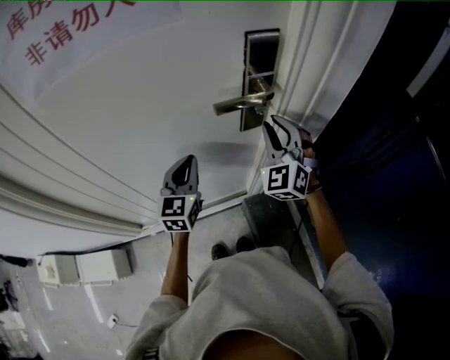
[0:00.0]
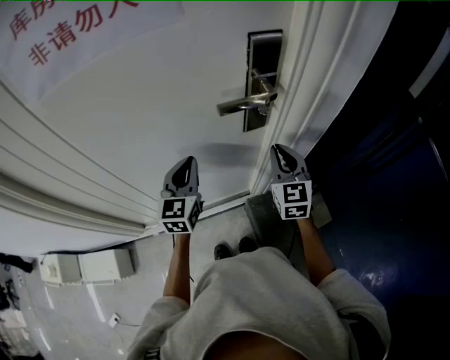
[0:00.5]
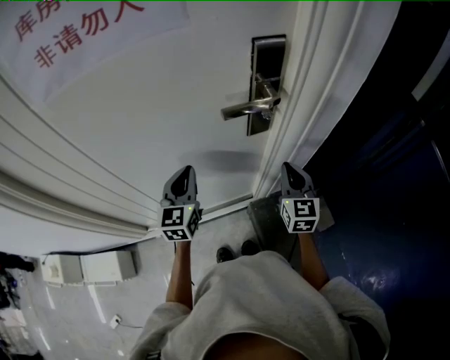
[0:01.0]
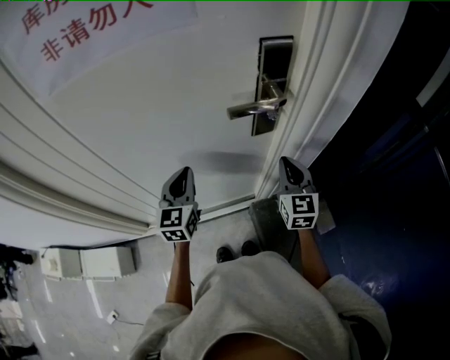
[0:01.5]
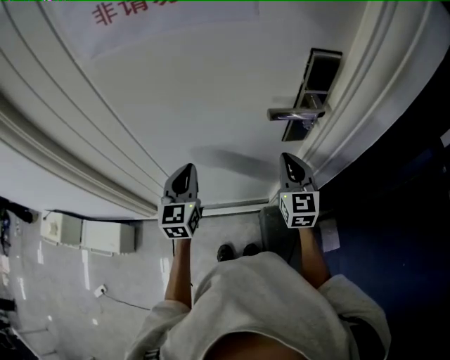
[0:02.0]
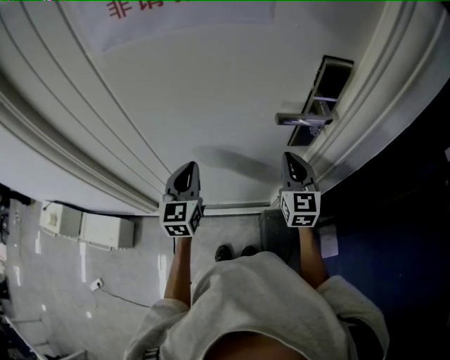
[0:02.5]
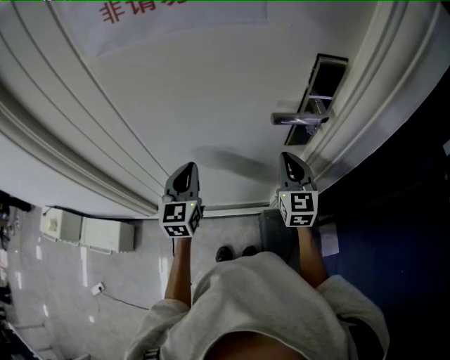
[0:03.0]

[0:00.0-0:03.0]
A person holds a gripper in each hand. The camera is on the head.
0:00.0 to 0:01.5: The right gripper heads downward, covering some 10 cm, and rotates around the line of its fingers by roughly 40 degrees, clockwise from behind. The left gripper moves about 5 cm.
0:01.5 to 0:03.0: Both grippers move to the left, some 10 cm.

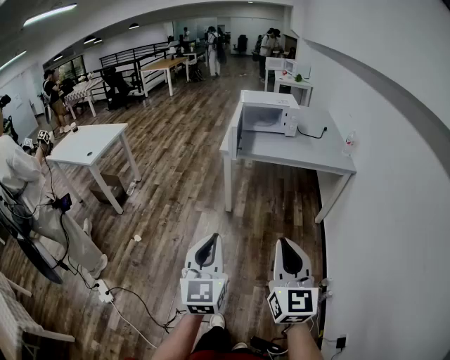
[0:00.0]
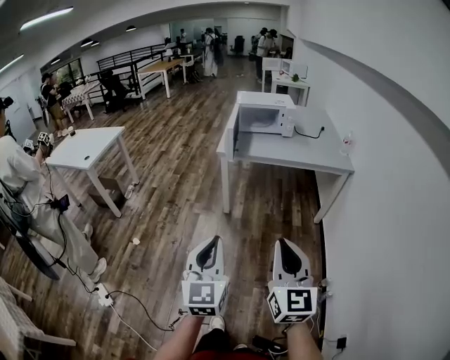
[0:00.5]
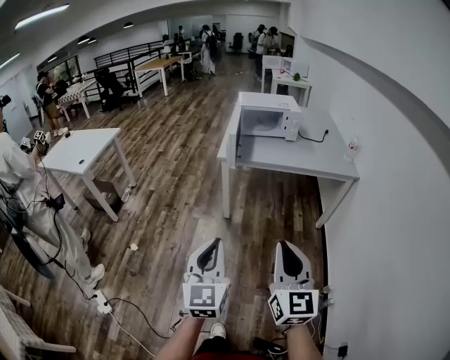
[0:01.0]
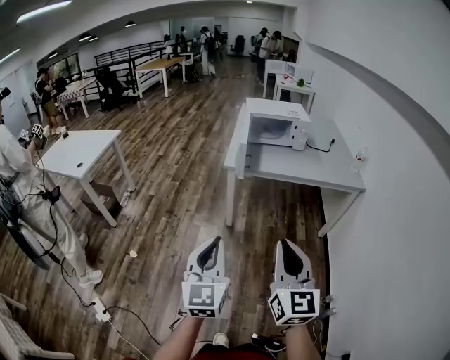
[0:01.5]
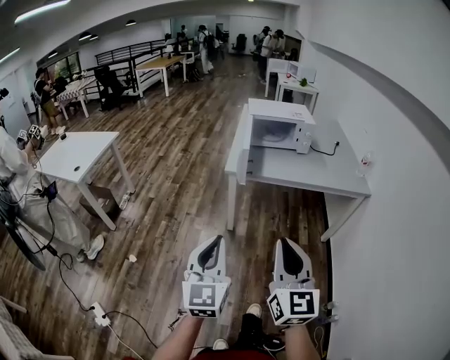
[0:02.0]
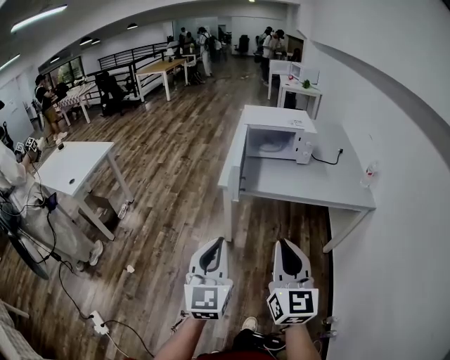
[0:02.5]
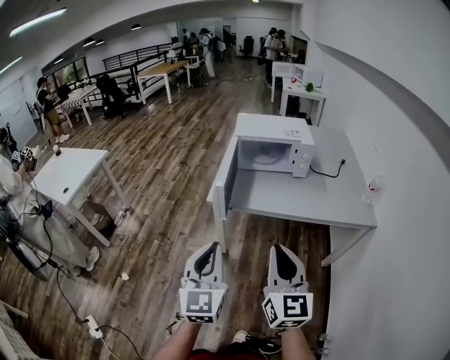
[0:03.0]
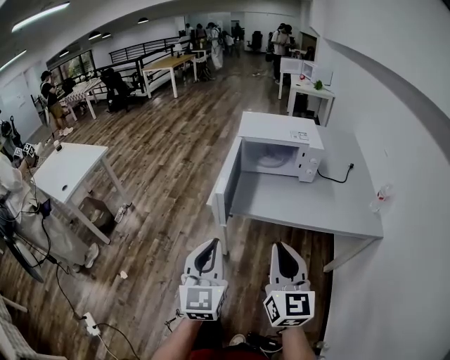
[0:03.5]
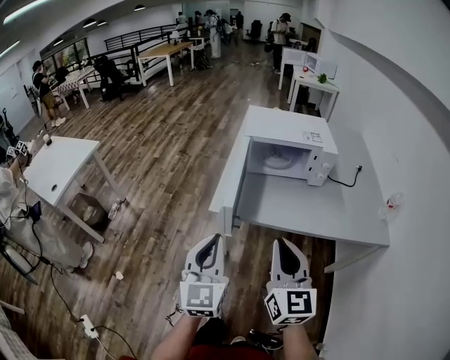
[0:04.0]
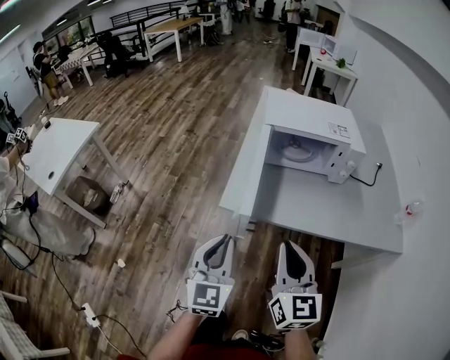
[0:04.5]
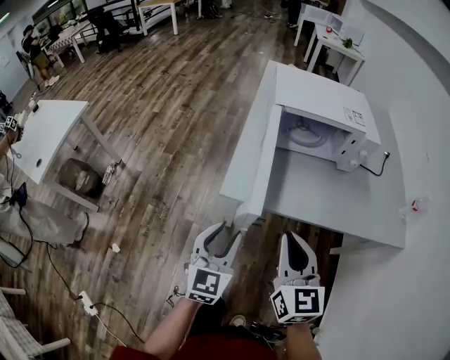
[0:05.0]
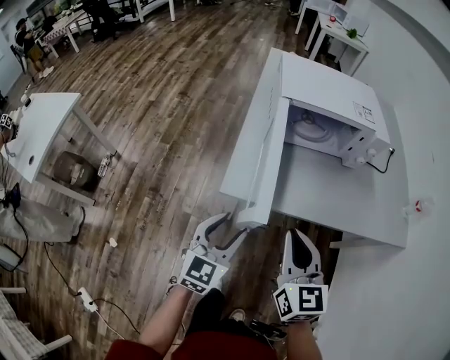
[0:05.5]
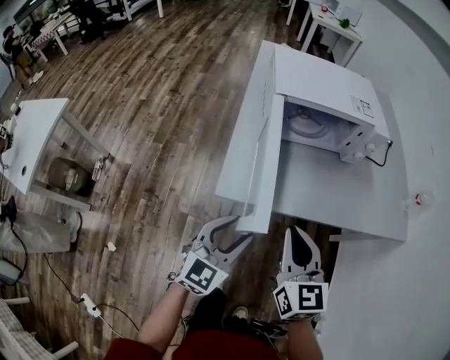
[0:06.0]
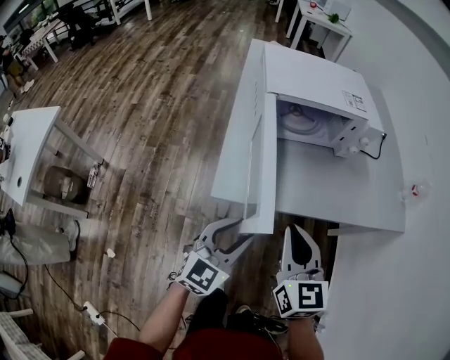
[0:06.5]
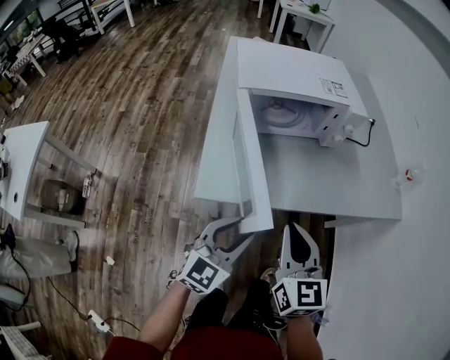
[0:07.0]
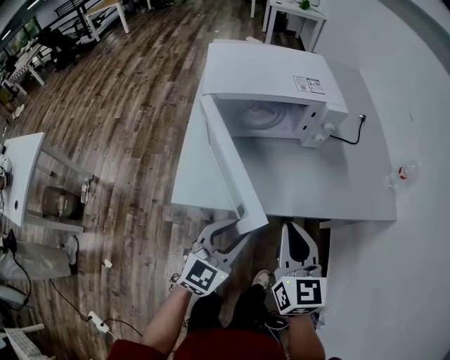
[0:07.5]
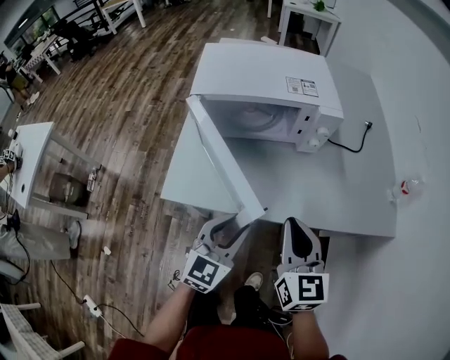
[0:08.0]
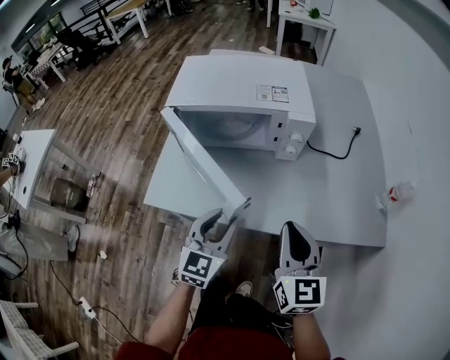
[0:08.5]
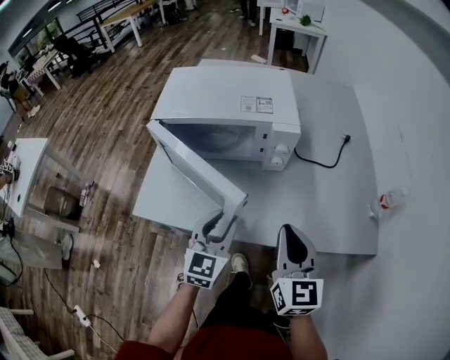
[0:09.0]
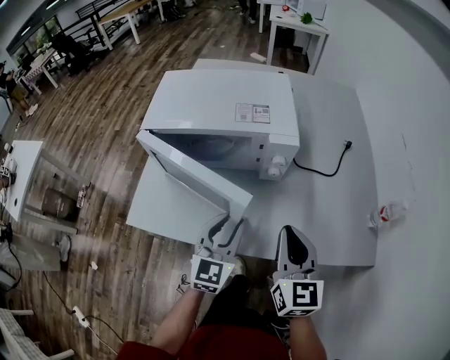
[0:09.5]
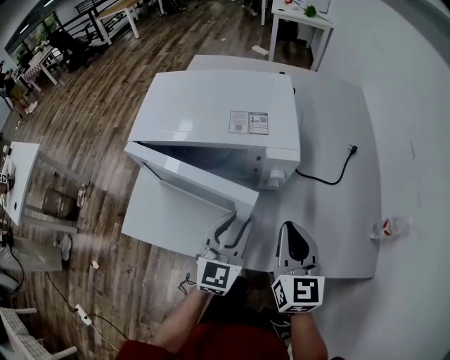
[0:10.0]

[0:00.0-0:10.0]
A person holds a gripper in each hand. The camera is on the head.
0:00.0 to 0:02.0: The grippers both shift forward by roughly 20 cm.
0:02.0 to 0:04.0: Both grippers travel together forward, about 35 cm.
0:04.0 to 0:06.0: The right gripper shifts roughly 20 cm forward, downward and to the left; the left gripper shifts about 20 cm downward and forward, rotates roughly 40 degrees, and opens up.
0:06.0 to 0:08.0: Both grippers move to the right and forward, roughly 20 cm.
0:08.0 to 0:10.0: The grippers both shift forward and to the right by about 20 cm.

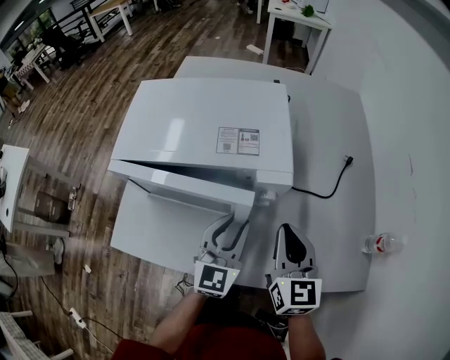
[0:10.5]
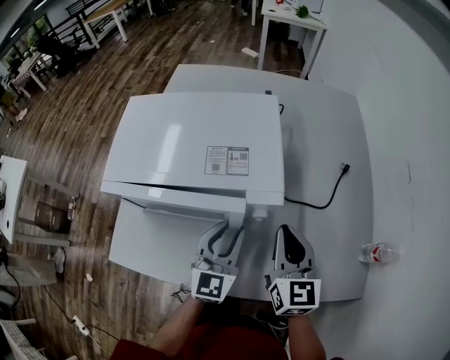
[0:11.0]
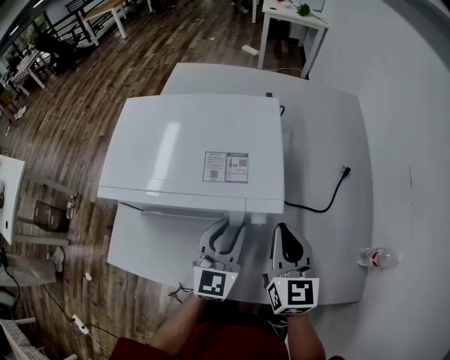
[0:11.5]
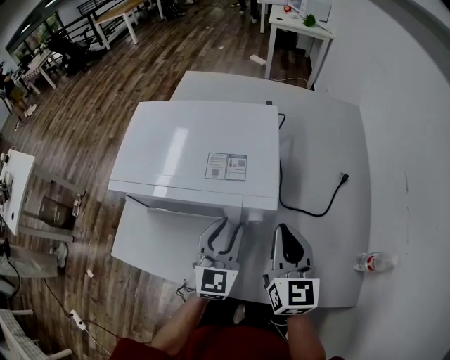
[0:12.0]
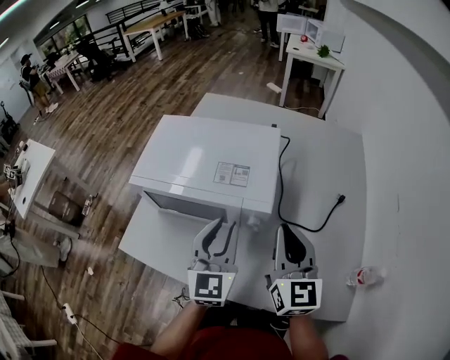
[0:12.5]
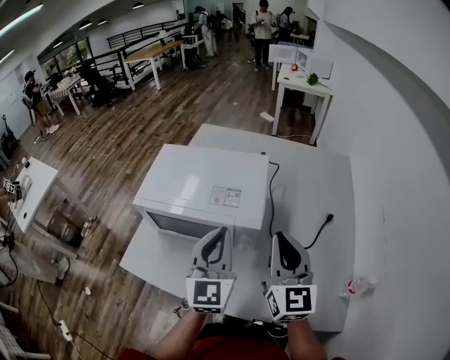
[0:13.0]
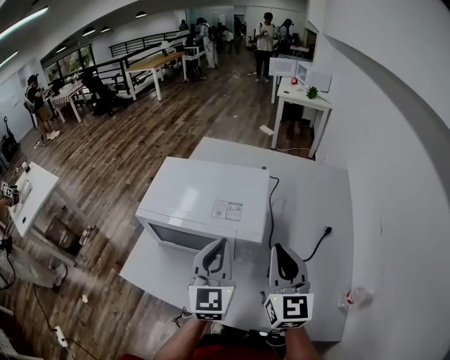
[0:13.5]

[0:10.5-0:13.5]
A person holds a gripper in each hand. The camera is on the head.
0:10.5 to 0:12.0: The right gripper travels forward by some 5 cm.
0:12.0 to 0:13.5: The two grippers go approximately 15 cm upward. The left gripper closes up.

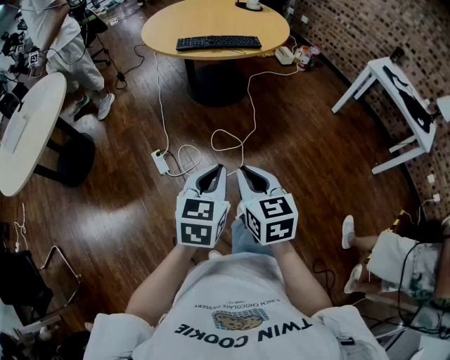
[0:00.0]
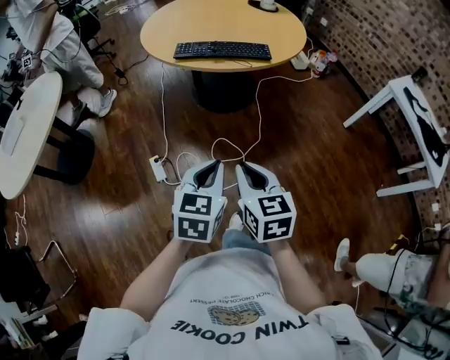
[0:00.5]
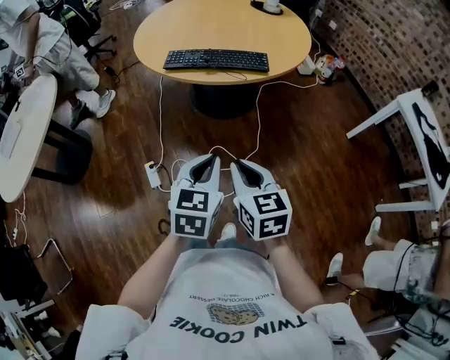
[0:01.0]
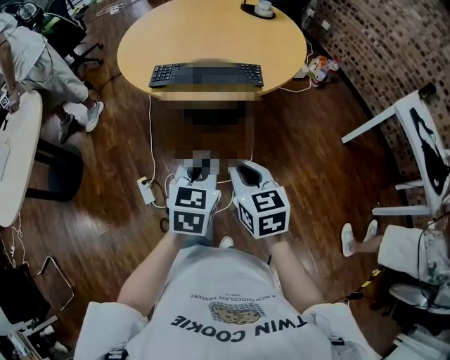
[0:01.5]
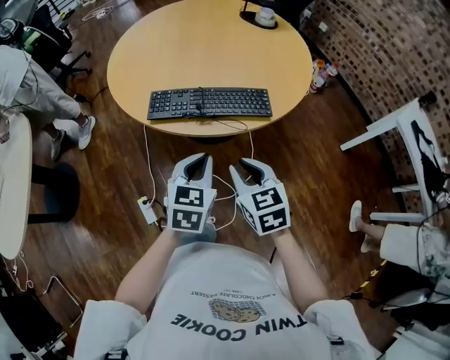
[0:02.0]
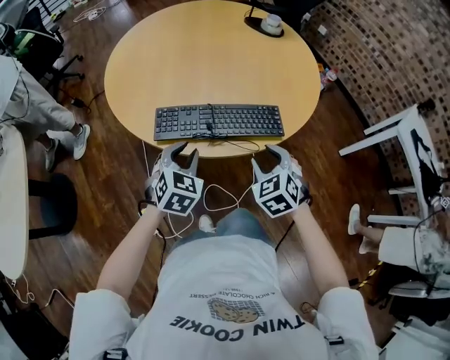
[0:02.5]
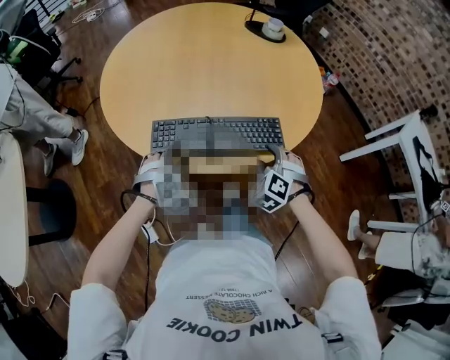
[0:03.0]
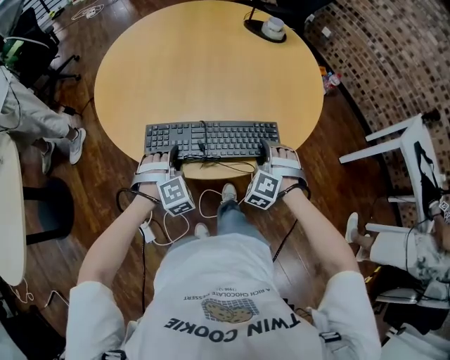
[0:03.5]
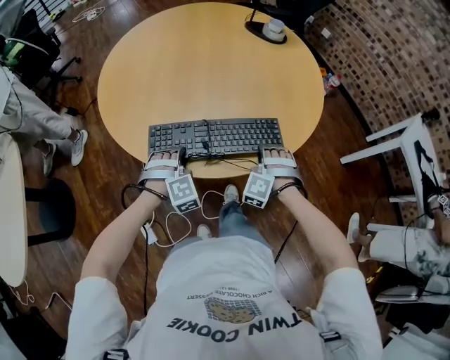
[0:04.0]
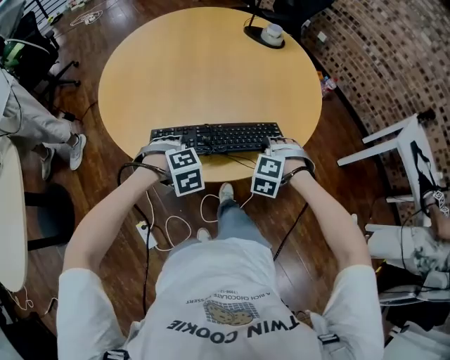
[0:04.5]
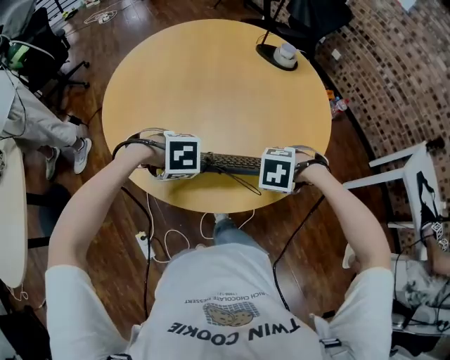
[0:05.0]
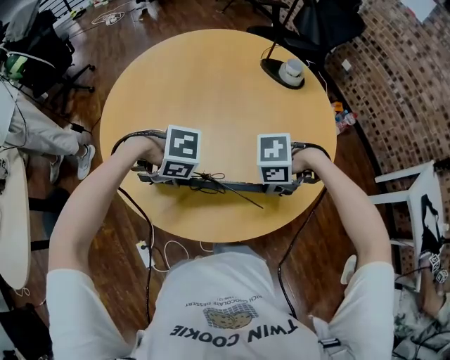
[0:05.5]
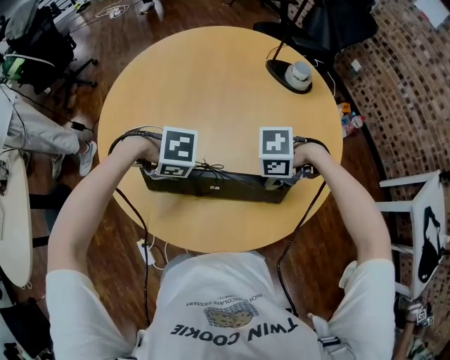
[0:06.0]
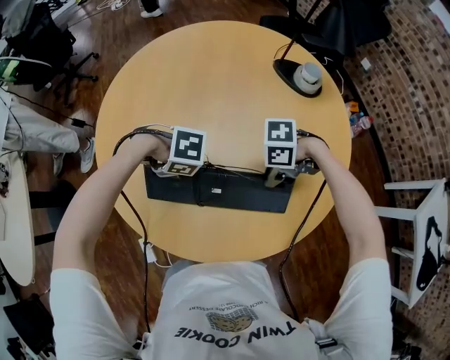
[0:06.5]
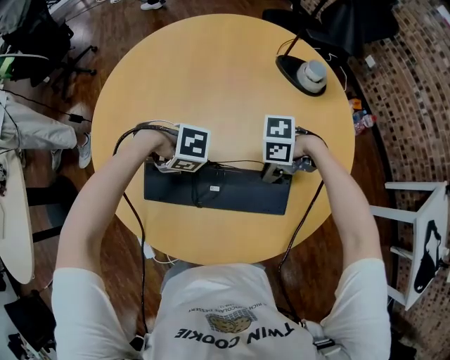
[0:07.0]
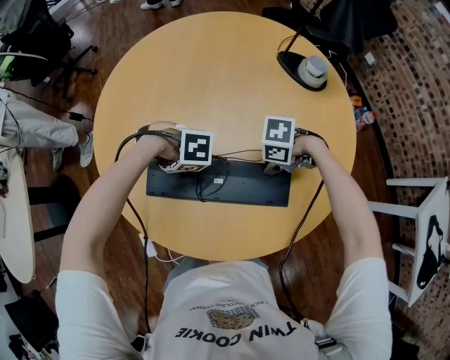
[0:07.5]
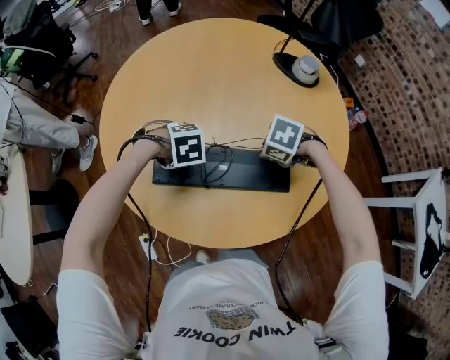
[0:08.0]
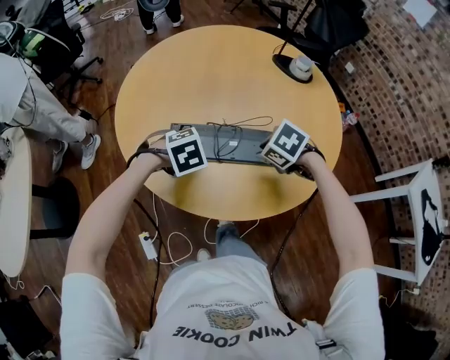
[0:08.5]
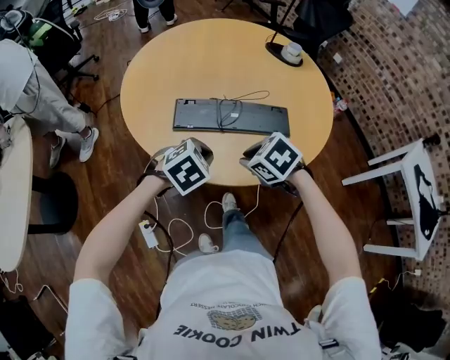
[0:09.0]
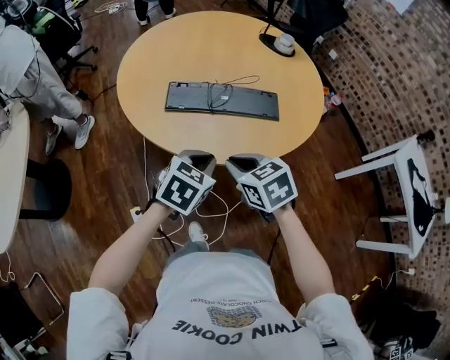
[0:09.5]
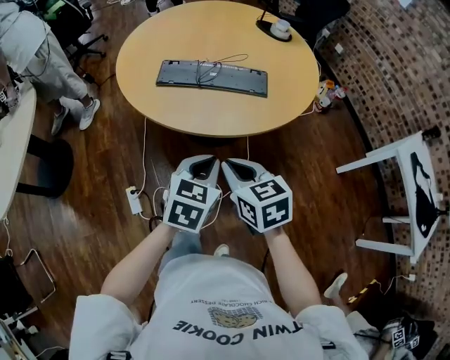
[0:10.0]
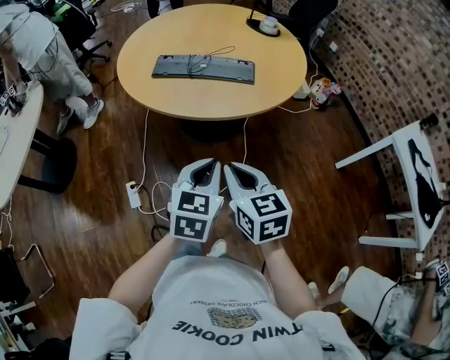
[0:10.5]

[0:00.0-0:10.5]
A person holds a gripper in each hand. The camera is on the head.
0:00.0 to 0:02.0: The two grippers travel together, forward, approximately 50 cm.
0:02.0 to 0:04.0: The right gripper goes about 25 cm forward and downward, twists approximately 70 degrees counterclockwise, seen from behind, and opens, then closes again. Meanwhile the left gripper goes some 25 cm forward, downward and to the left, rotates around the line of its fingers by about 70 degrees, clockwise from behind, and opens.
0:04.0 to 0:06.5: The left gripper moves roughly 20 cm, and rotates some 70 degrees. The right gripper ends up roughly 20 cm from where it was, and turns by approximately 90 degrees.
0:06.5 to 0:08.5: The left gripper moves some 10 cm, turns by some 40 degrees, and closes; the right gripper changes place by roughly 10 cm, and changes its angle by about 50 degrees.
0:08.5 to 0:10.5: Both grippers are carried backward, roughly 50 cm. The right gripper points its fingers about 50 degrees further upward, and closes up, while the left gripper angles its fingers upward, by about 40 degrees.
